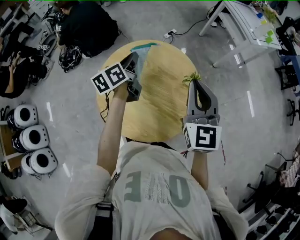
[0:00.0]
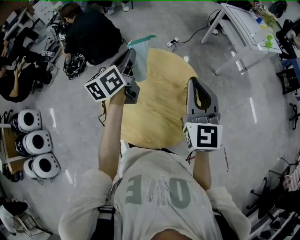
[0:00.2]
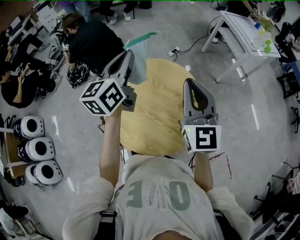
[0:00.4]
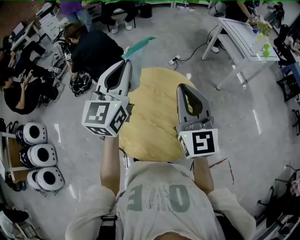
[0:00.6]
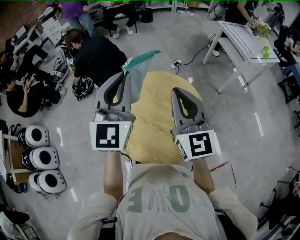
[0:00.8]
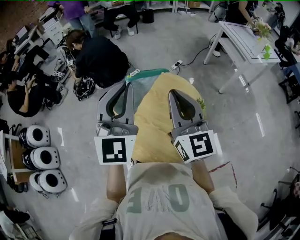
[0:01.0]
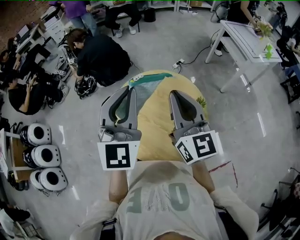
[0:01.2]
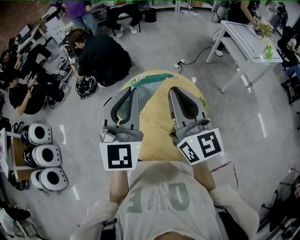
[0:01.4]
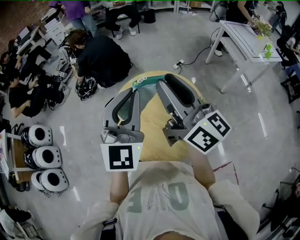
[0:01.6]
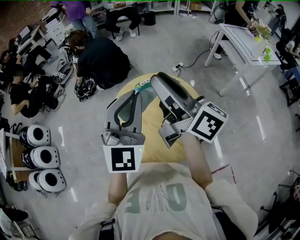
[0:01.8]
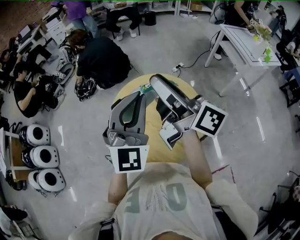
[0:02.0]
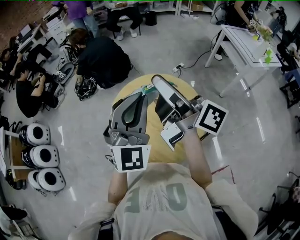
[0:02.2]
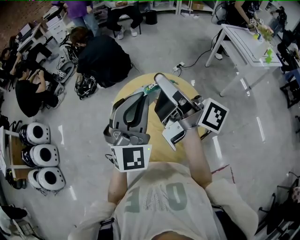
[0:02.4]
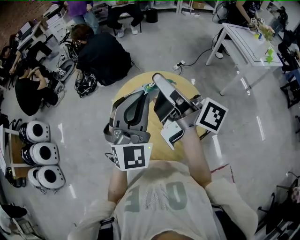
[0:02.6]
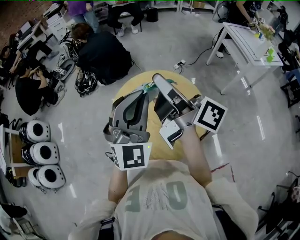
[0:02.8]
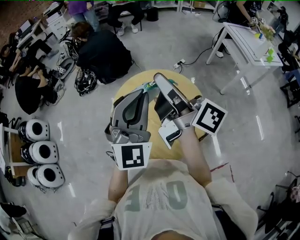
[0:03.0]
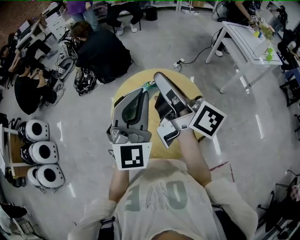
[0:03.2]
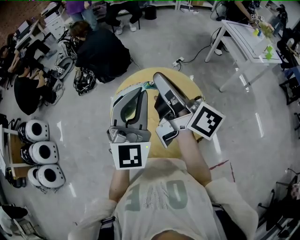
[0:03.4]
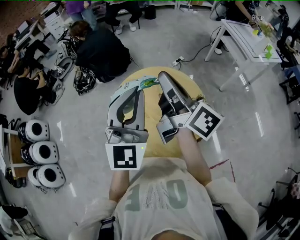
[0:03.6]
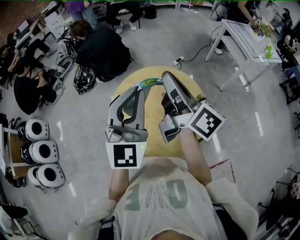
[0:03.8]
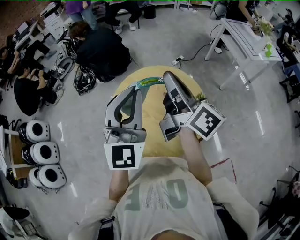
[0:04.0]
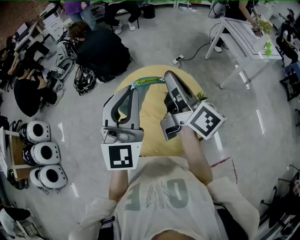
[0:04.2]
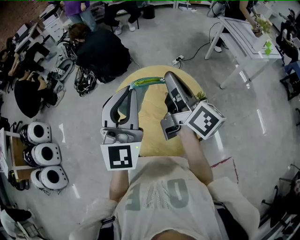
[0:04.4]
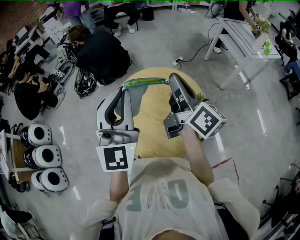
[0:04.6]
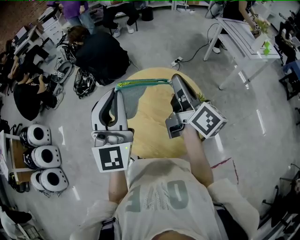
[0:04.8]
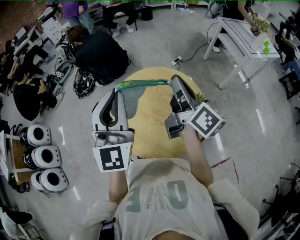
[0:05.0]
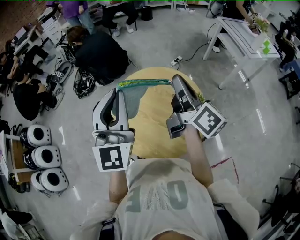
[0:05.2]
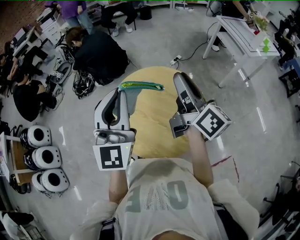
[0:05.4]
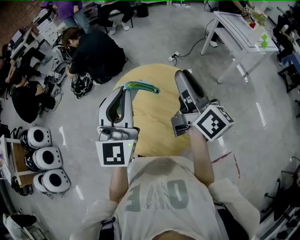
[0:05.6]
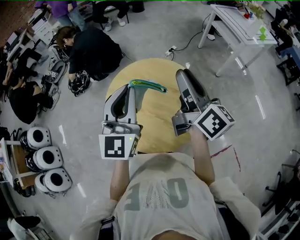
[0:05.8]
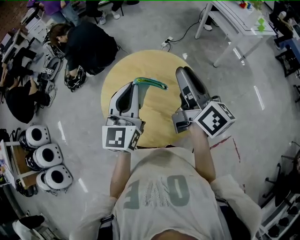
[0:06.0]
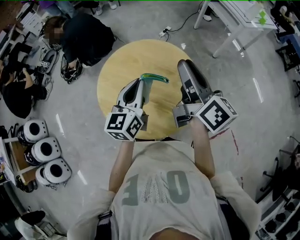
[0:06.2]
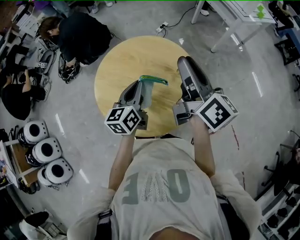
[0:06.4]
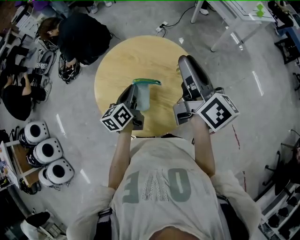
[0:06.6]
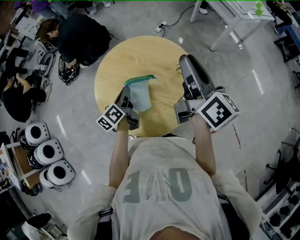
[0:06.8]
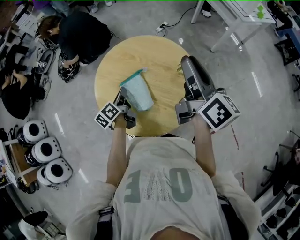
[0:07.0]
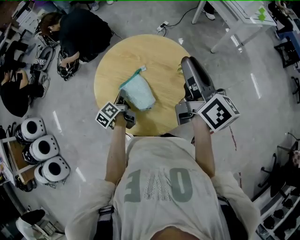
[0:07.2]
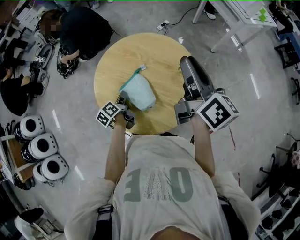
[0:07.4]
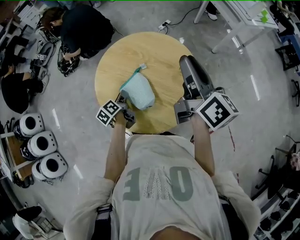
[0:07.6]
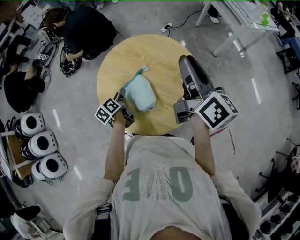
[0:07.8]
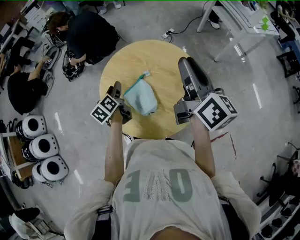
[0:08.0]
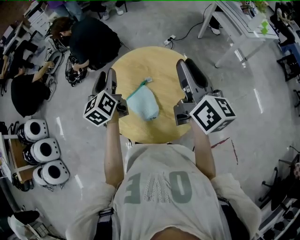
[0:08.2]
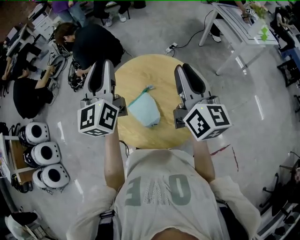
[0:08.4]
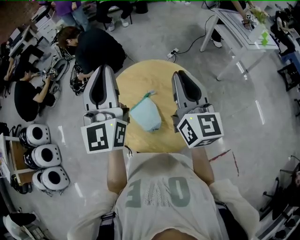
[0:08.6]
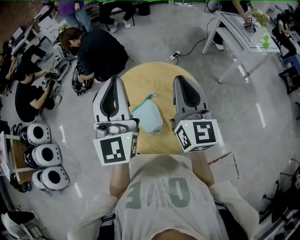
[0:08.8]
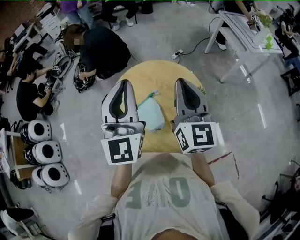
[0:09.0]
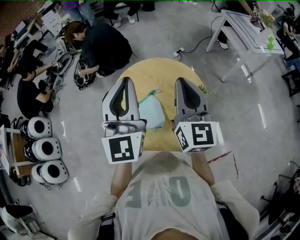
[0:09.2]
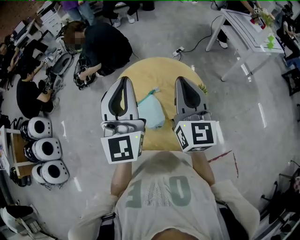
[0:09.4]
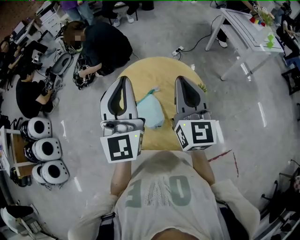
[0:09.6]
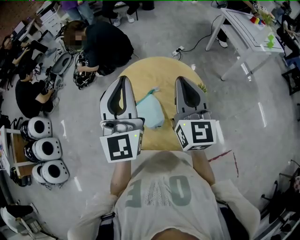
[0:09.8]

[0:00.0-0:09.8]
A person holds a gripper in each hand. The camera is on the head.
0:00.0 to 0:01.4: The right gripper is displaced upward and to the left by approximately 10 cm, and rotates some 30 degrees. Meanwhile the left gripper heads upward and backward, covering about 25 cm, and rotates around the line of its fingers by roughly 70 degrees, clockwise from behind.
0:01.4 to 0:02.8: The right gripper ends up roughly 5 cm from where it was, rolls clockwise, seen from behind, by approximately 60 degrees, and opens, then closes again.
0:02.8 to 0:04.2: The right gripper swivels about 30 degrees.
0:04.2 to 0:05.6: The right gripper is displaced to the right by some 5 cm, and opens its fingers.
0:05.6 to 0:07.0: The right gripper heads to the right and downward, covering approximately 10 cm, while the left gripper shifts roughly 35 cm downward, and twists roughly 70 degrees counterclockwise, seen from behind.
0:07.0 to 0:08.4: The left gripper goes approximately 35 cm upward, angles its fingers upward, by approximately 30 degrees, and opens its fingers. The right gripper heads to the left, covering roughly 5 cm, and swivels some 20 degrees.
0:08.4 to 0:09.8: The left gripper heads backward, covering about 5 cm, turns by roughly 20 degrees, and closes up.

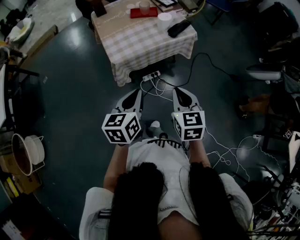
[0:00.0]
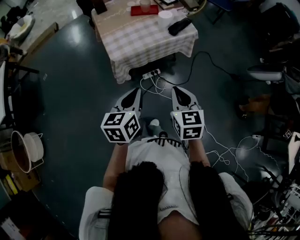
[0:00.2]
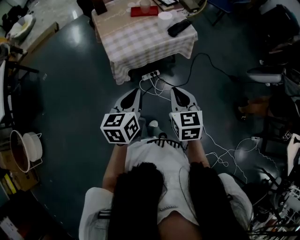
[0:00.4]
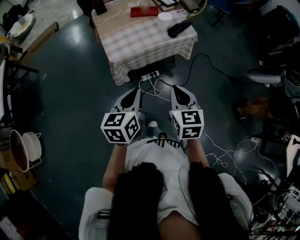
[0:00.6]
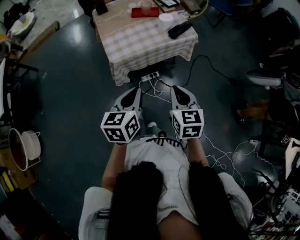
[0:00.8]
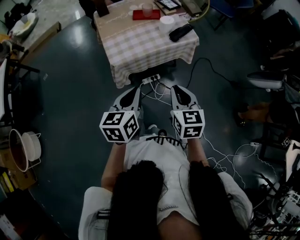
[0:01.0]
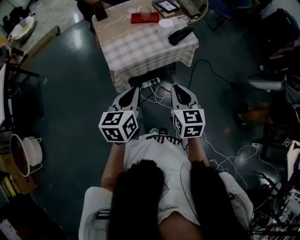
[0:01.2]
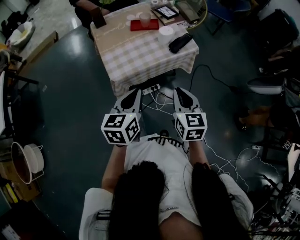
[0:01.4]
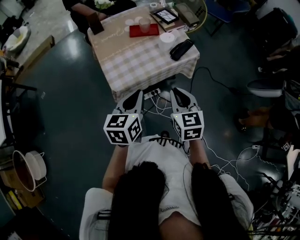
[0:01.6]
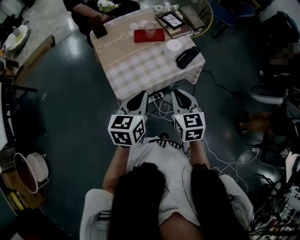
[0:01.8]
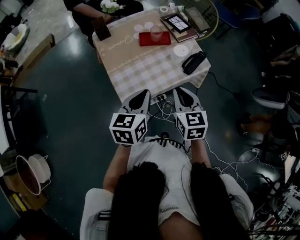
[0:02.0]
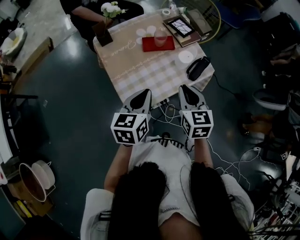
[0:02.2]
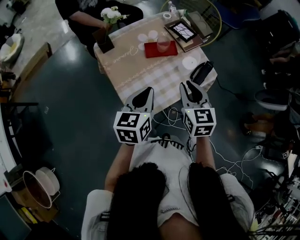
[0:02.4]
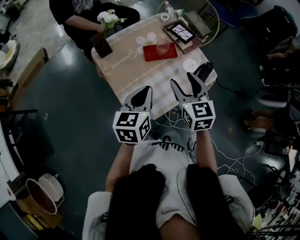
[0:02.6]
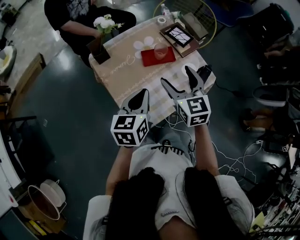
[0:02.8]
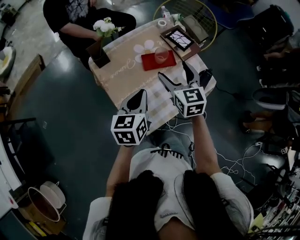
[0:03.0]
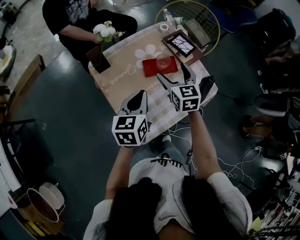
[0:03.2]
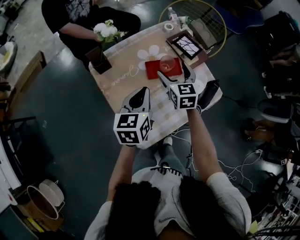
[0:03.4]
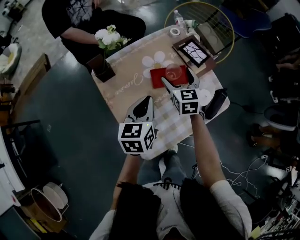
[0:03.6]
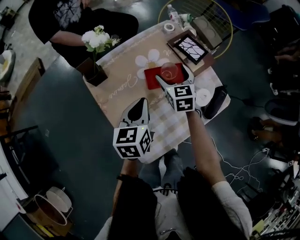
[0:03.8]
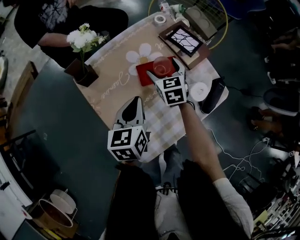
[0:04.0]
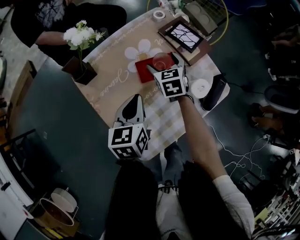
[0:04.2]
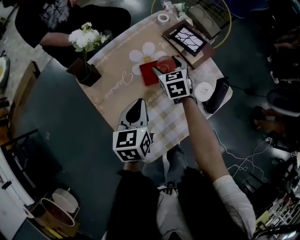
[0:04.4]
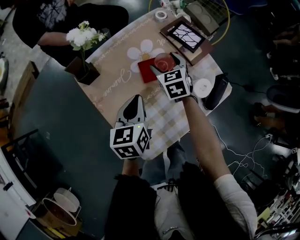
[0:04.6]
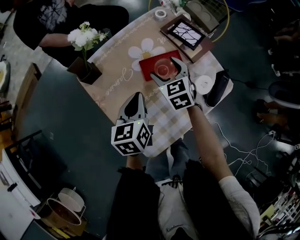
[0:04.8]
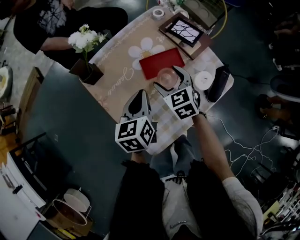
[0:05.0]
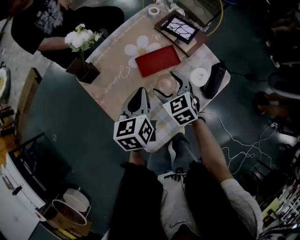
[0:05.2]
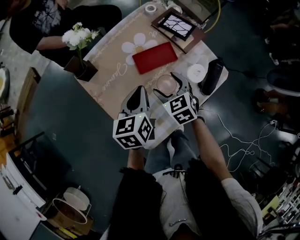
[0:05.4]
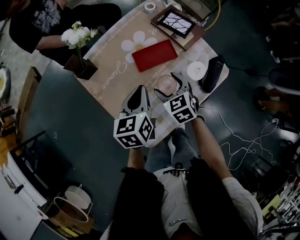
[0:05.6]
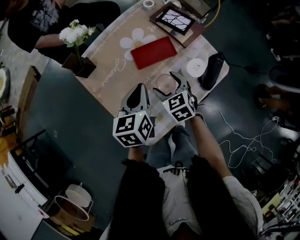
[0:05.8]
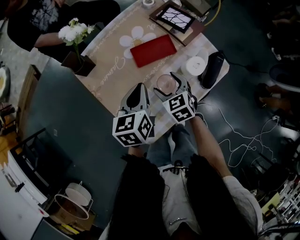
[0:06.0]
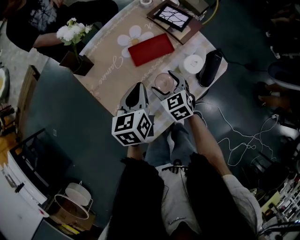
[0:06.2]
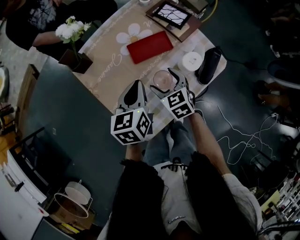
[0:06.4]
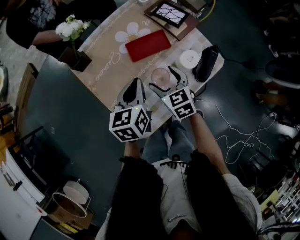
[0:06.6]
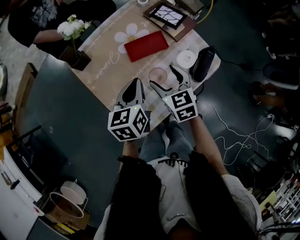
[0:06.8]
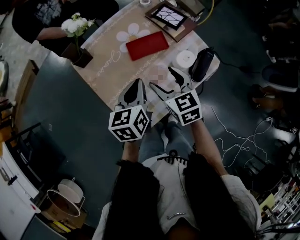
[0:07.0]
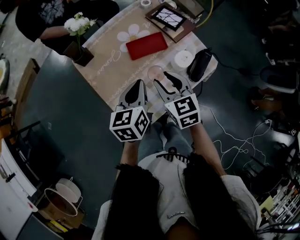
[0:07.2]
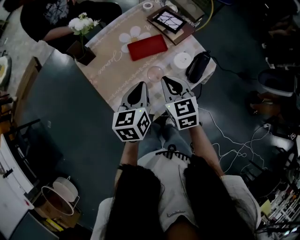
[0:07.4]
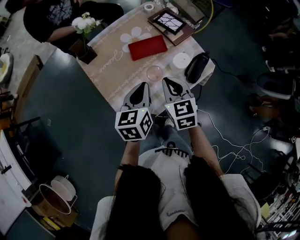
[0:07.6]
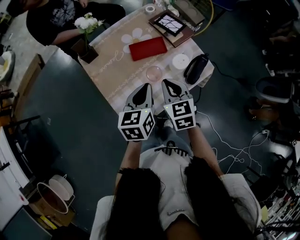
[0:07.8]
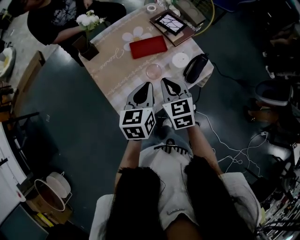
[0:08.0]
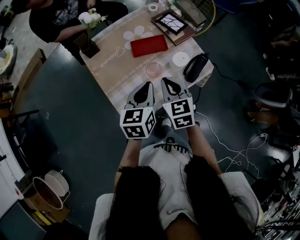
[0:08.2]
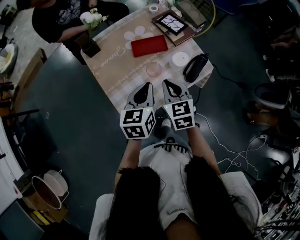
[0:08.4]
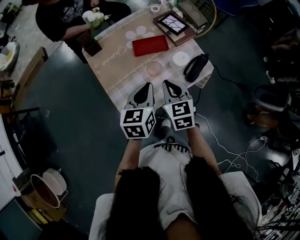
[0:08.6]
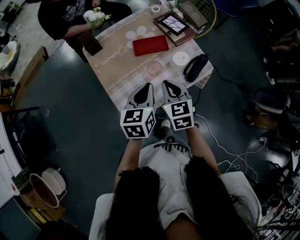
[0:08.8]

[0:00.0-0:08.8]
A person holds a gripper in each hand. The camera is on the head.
0:00.0 to 0:01.4: Both grippers move forward, about 10 cm.
0:01.4 to 0:03.0: Both grippers travel together forward and to the left, approximately 40 cm. The right gripper opens up.
0:03.0 to 0:04.4: The right gripper travels downward and forward by about 25 cm, and swivels some 20 degrees. The left gripper travels downward and forward by about 15 cm.
0:04.4 to 0:05.8: The right gripper shifts roughly 15 cm backward.
0:05.8 to 0:07.4: The left gripper moves backward, roughly 5 cm. Meanwhile the right gripper goes approximately 15 cm upward and backward, and closes.
0:07.4 to 0:08.8: Both grippers move backward, about 5 cm.

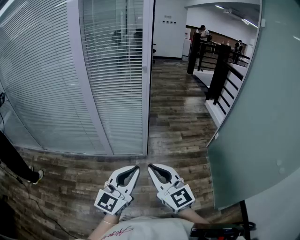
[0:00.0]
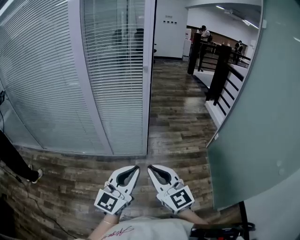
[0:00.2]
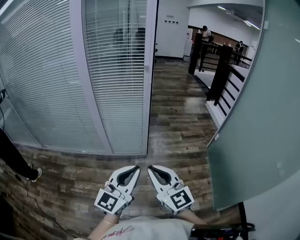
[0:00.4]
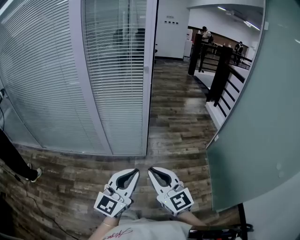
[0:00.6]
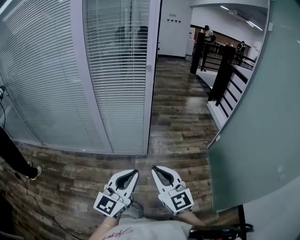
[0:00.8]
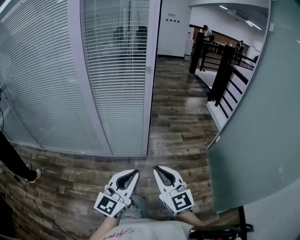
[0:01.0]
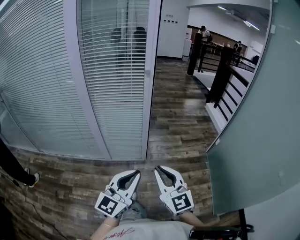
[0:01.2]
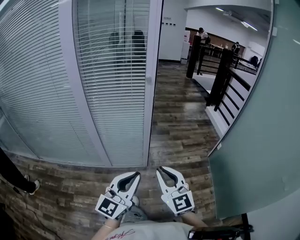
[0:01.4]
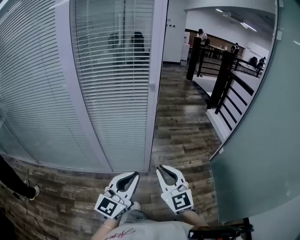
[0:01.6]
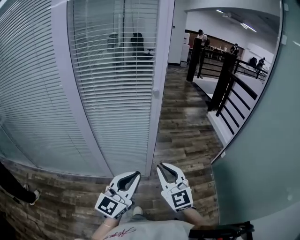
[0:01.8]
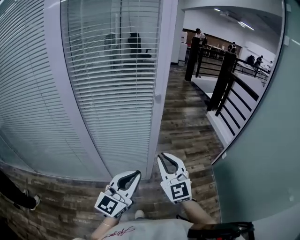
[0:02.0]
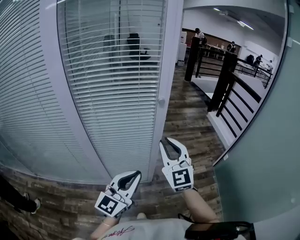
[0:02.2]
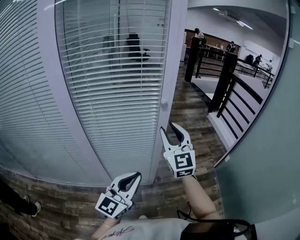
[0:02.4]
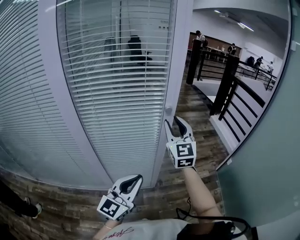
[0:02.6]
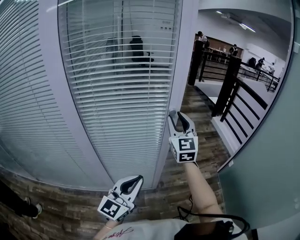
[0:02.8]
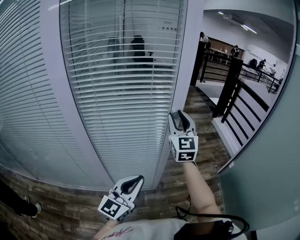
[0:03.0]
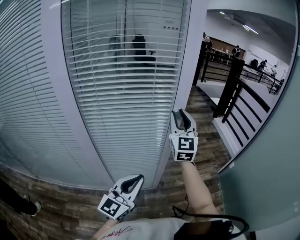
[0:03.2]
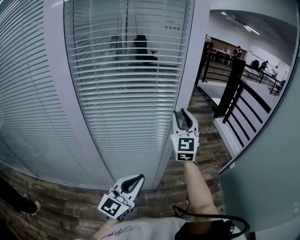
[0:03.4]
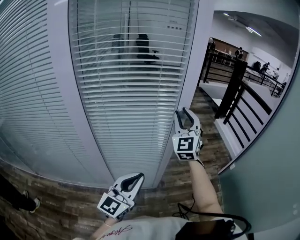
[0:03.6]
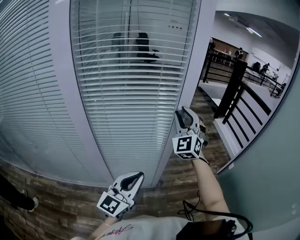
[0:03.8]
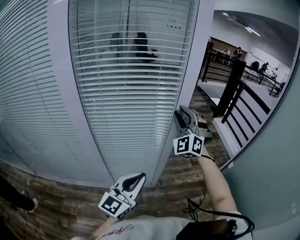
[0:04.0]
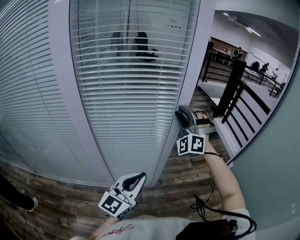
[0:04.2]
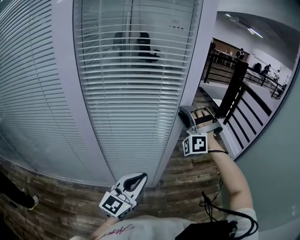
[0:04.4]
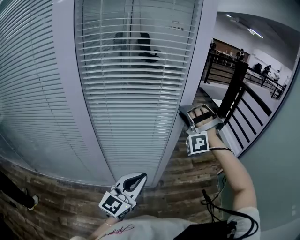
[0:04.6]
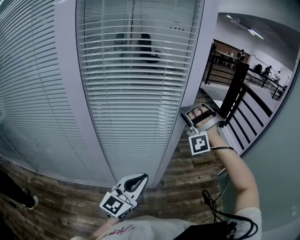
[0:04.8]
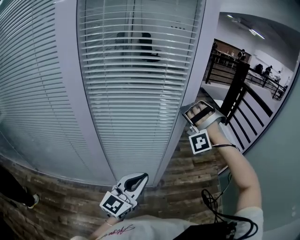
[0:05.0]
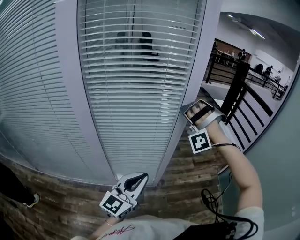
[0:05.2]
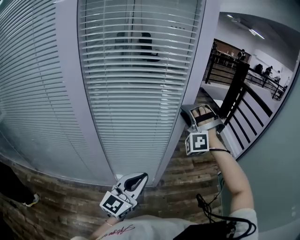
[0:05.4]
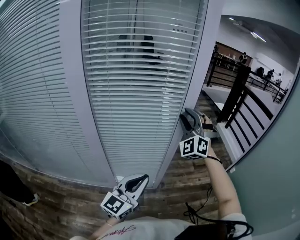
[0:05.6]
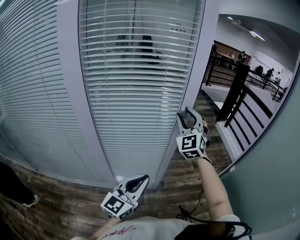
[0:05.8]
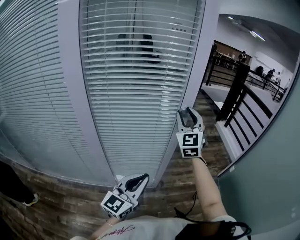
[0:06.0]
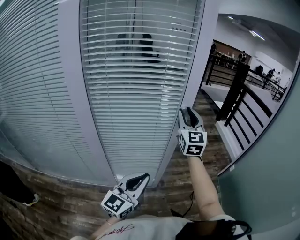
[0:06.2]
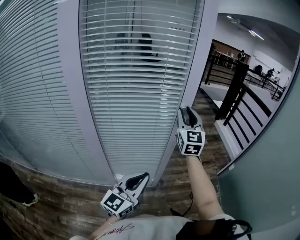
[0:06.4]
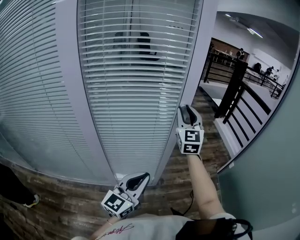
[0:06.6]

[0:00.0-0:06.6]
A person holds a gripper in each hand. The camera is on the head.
0:00.0 to 0:01.6: Both grippers move forward, about 20 cm.
0:01.6 to 0:03.2: The left gripper travels forward and to the left by about 20 cm; the right gripper is displaced forward by roughly 35 cm, rotates about 30 degrees, and opens its fingers.
0:03.2 to 0:05.0: The right gripper twists roughly 110 degrees counterclockwise, seen from behind.
0:05.0 to 0:06.6: The right gripper twists approximately 100 degrees clockwise, seen from behind.
